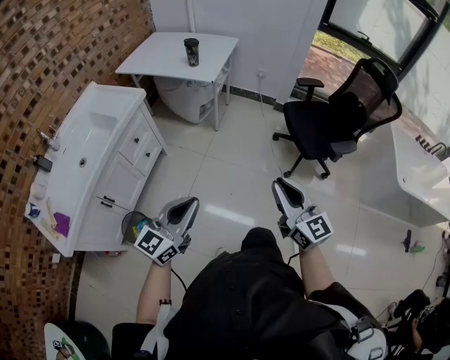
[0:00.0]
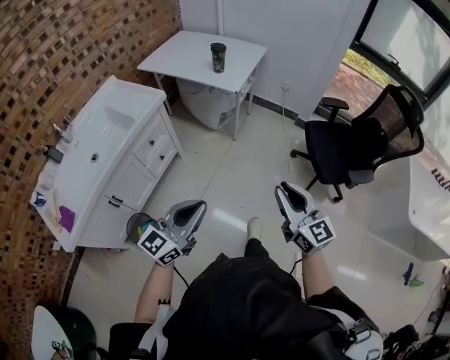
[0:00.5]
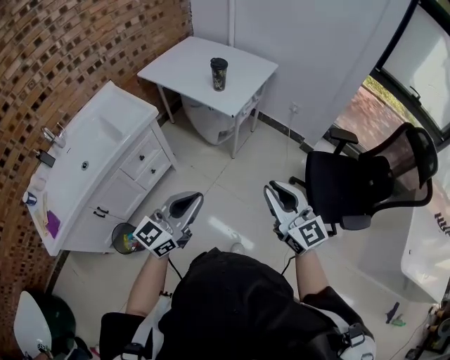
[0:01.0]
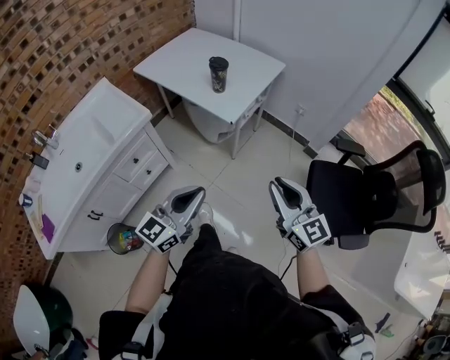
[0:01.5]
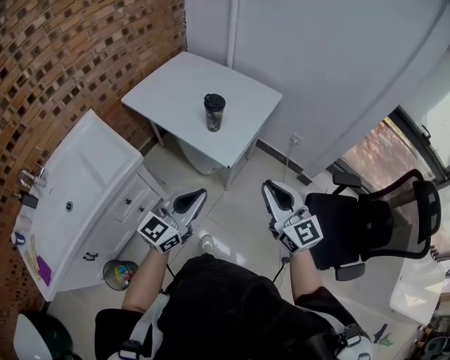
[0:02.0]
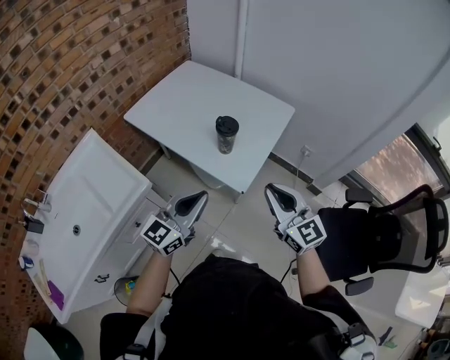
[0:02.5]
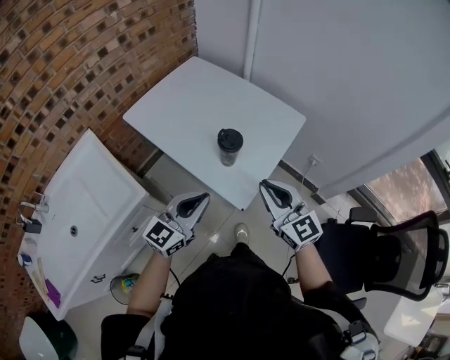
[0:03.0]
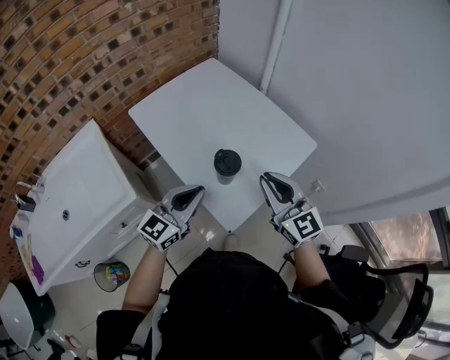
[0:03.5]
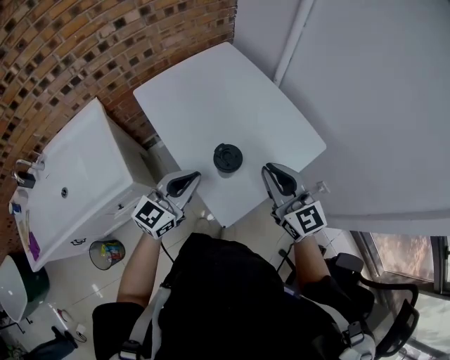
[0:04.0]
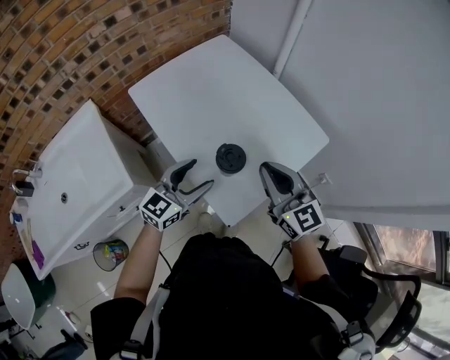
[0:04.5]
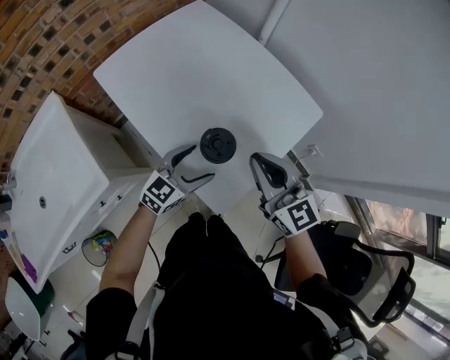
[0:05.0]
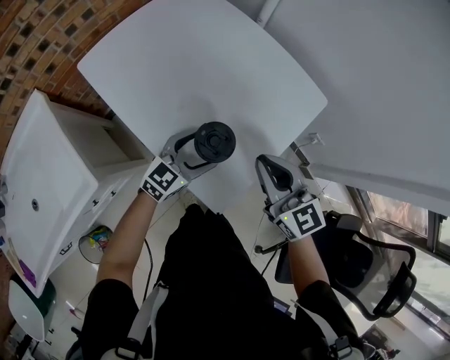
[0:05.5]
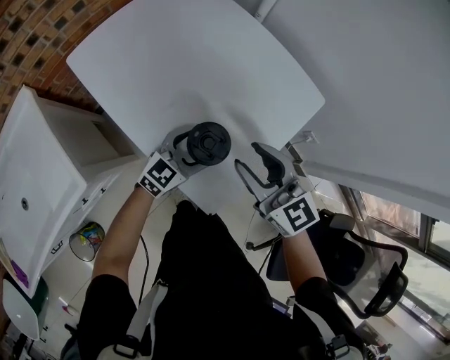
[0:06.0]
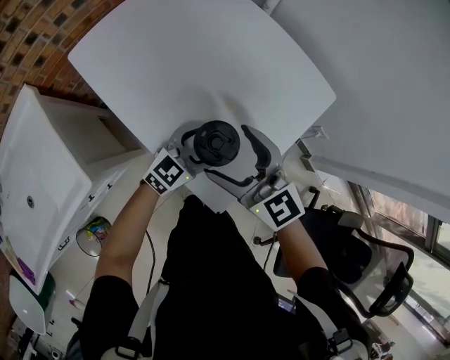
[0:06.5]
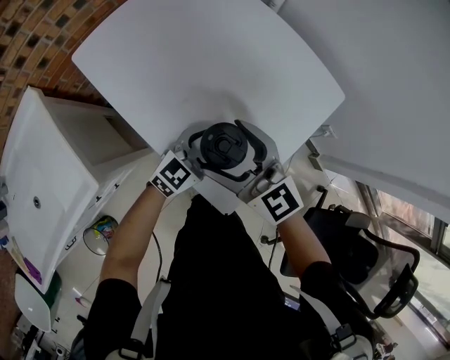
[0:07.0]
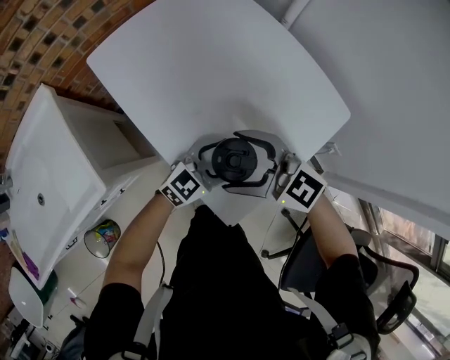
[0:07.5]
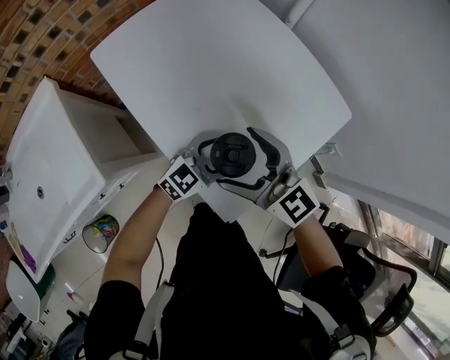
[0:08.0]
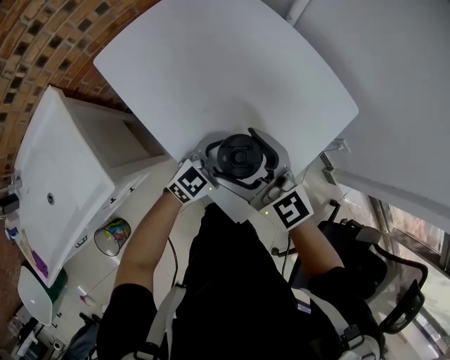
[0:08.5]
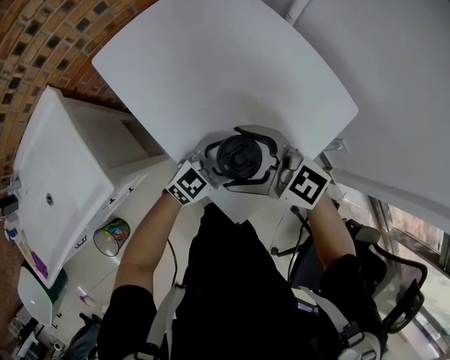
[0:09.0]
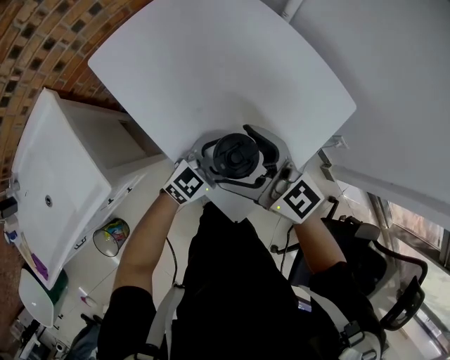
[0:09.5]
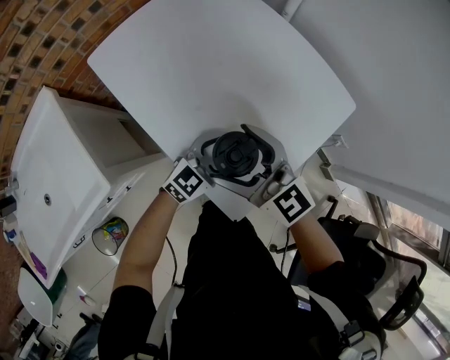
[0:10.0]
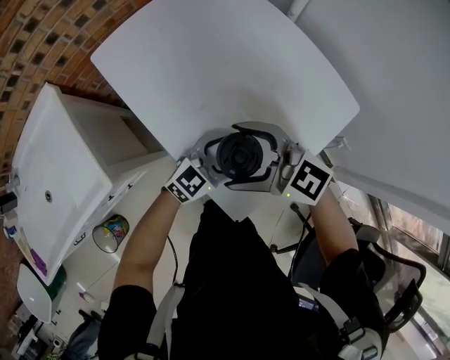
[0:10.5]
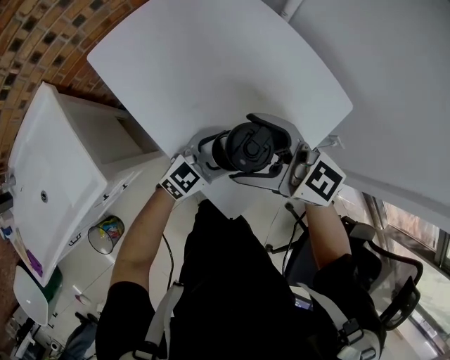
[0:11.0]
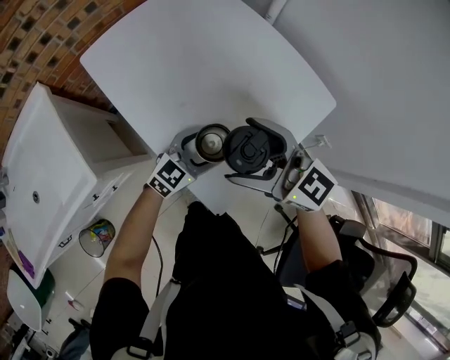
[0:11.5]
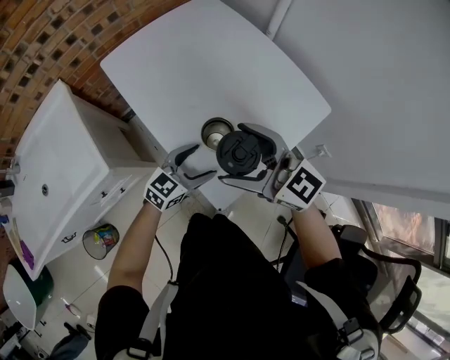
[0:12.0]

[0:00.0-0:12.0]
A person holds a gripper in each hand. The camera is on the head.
0:00.0 to 0:02.0: Both grippers are carried forward, about 50 cm.
0:02.0 to 0:04.0: The two grippers go about 35 cm forward. The left gripper rotates roughly 20 degrees, while the right gripper rotates roughly 20 degrees.
0:04.0 to 0:06.0: The left gripper goes roughly 20 cm downward, swivels some 30 degrees, and opens its fingers; the right gripper shifts approximately 10 cm downward.
0:06.0 to 0:08.0: The right gripper ends up approximately 10 cm from where it was, changes its angle by approximately 20 degrees, and opens its fingers.
0:10.0 to 0:12.0: The right gripper travels upward by approximately 5 cm. The left gripper ends up approximately 5 cm from where it was.

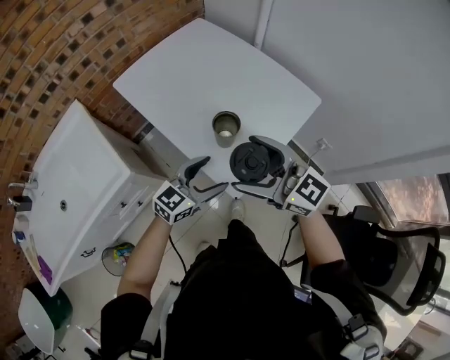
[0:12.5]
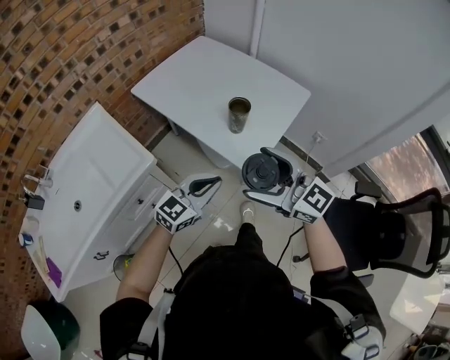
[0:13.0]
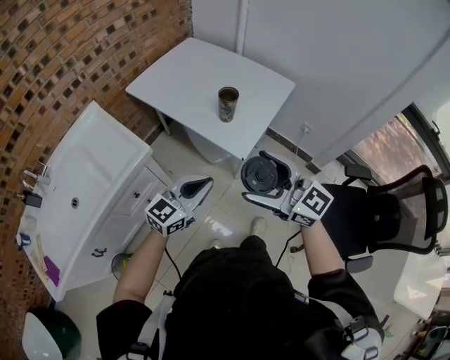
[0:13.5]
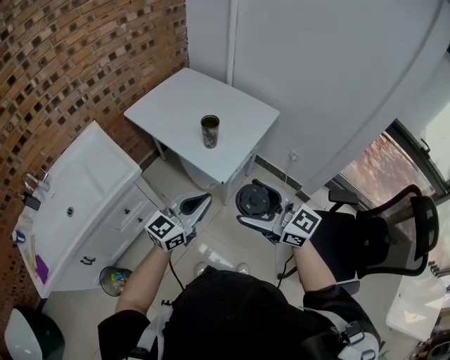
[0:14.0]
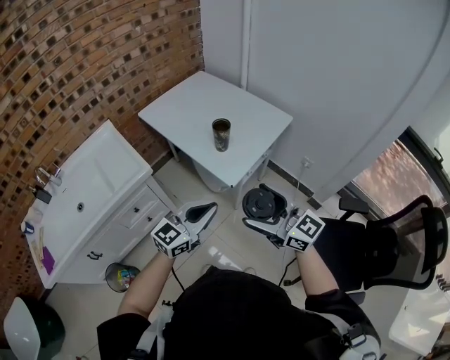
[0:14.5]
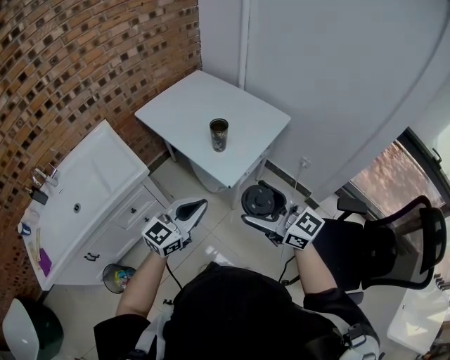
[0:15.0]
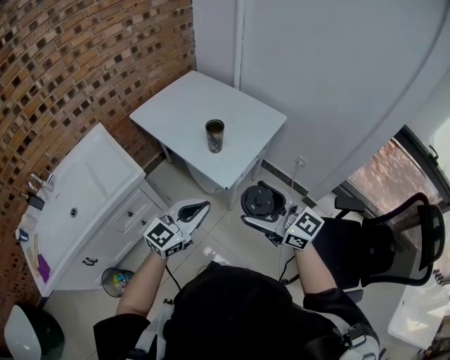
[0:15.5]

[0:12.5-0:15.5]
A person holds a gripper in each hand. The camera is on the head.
0:12.5 to 0:14.0: The left gripper is displaced backward and upward by roughly 30 cm, and closes up, while the right gripper goes roughly 30 cm backward.
0:14.0 to 0:15.5: The grippers make only small movements.

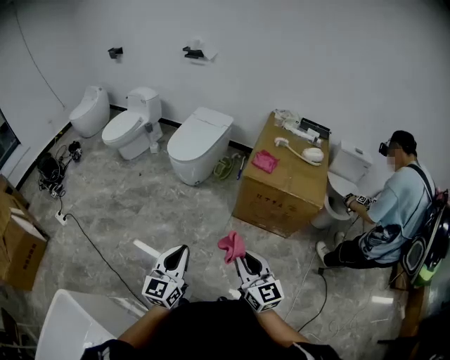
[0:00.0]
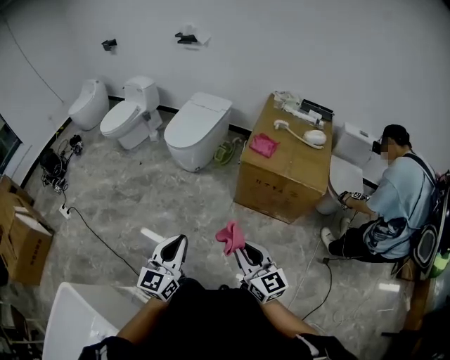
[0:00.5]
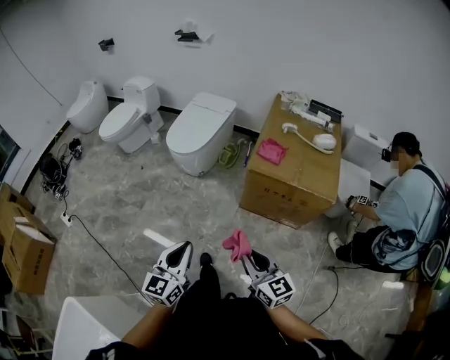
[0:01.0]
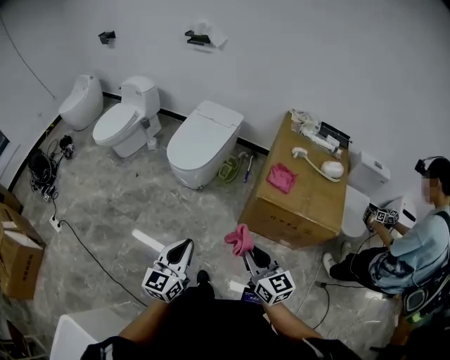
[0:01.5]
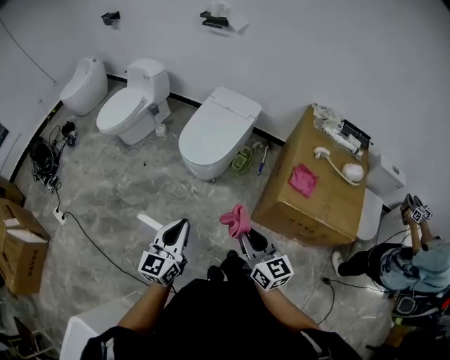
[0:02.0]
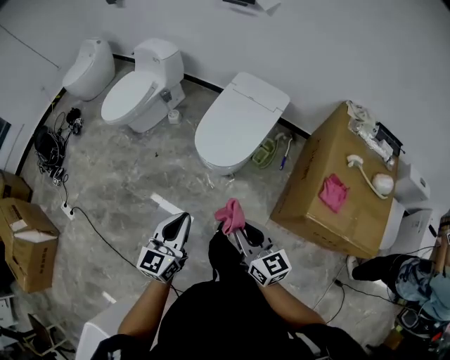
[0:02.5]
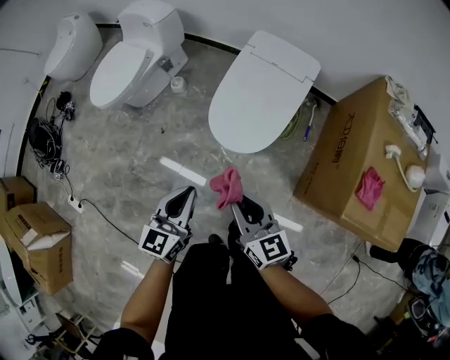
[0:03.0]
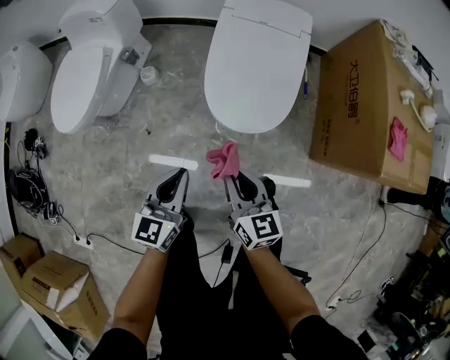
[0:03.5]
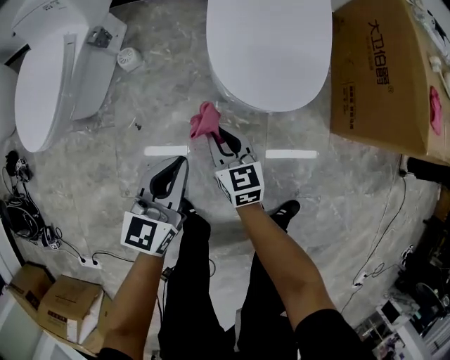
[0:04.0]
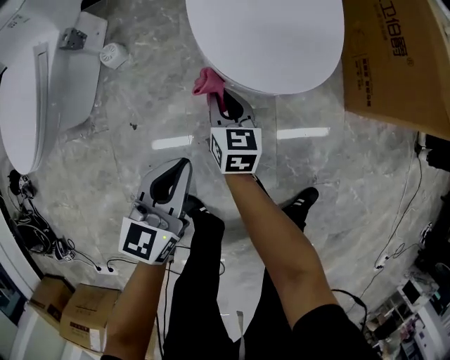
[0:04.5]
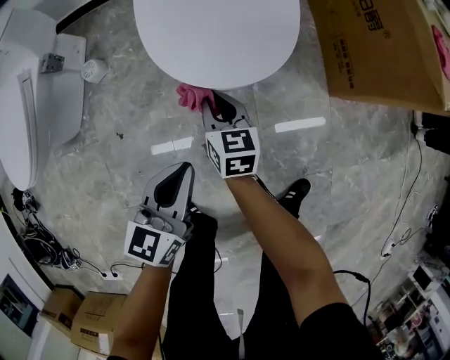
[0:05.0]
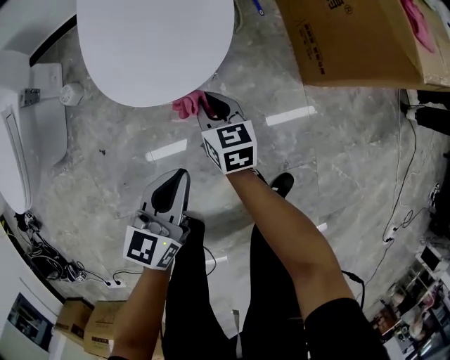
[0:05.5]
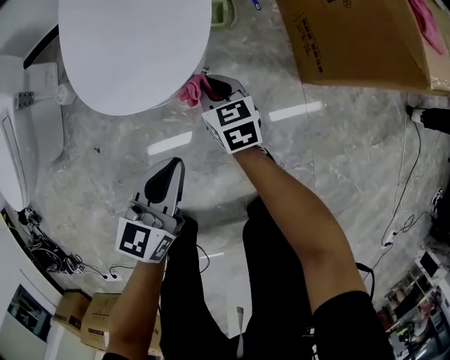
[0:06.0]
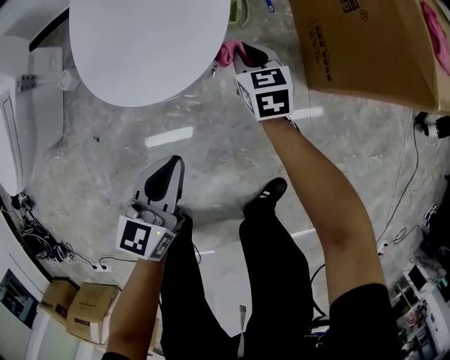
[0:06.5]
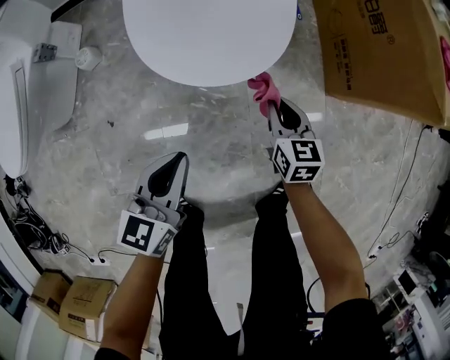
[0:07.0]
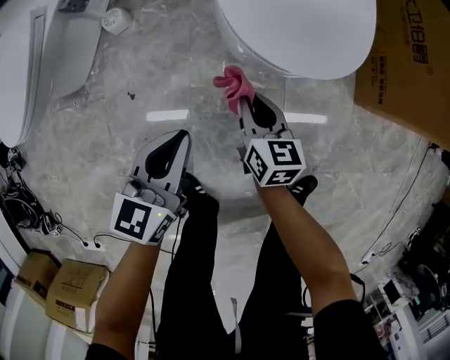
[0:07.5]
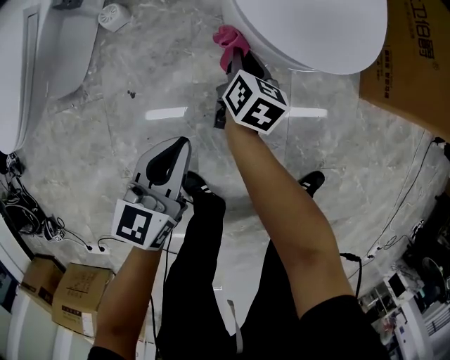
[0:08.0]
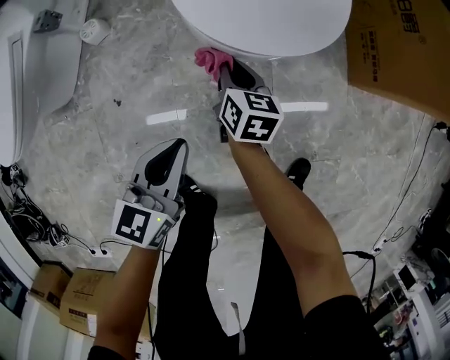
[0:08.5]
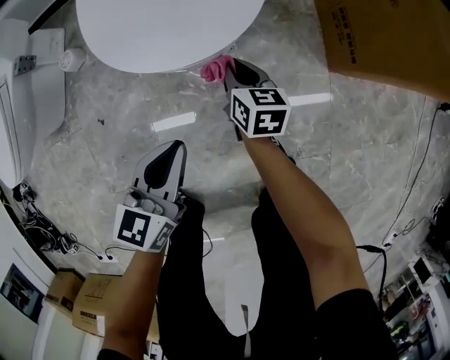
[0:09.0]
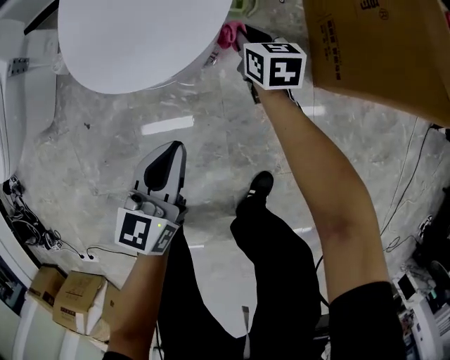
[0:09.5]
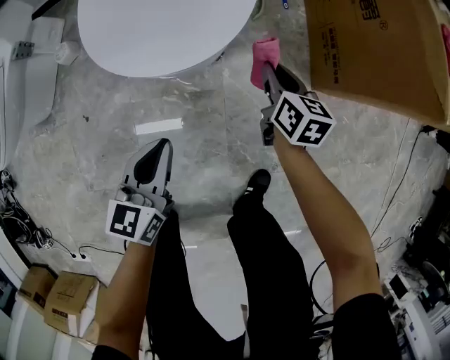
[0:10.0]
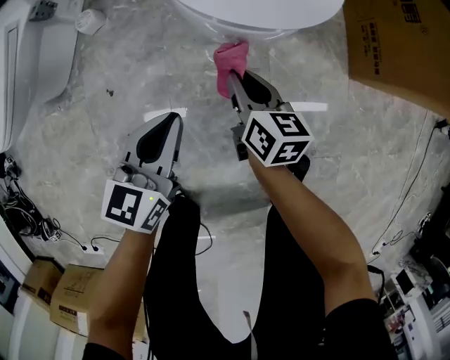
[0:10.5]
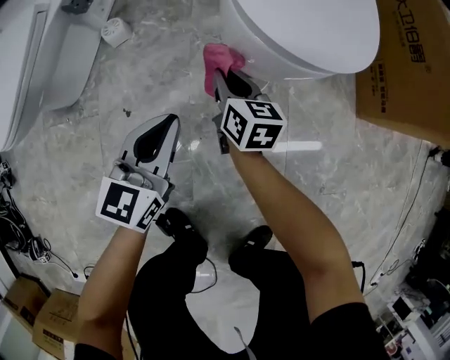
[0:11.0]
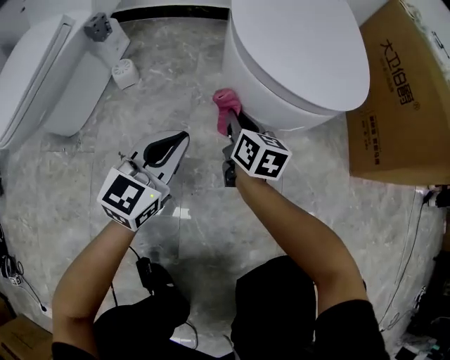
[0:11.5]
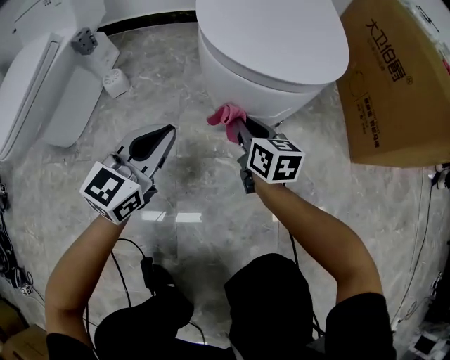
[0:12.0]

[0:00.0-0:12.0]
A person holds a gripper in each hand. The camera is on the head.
0:00.0 to 0:02.0: The two grippers go some 35 cm forward.
0:02.0 to 0:04.0: The two grippers travel together, about 50 cm. The right gripper swivels roughly 30 degrees; the left gripper changes its angle by about 30 degrees.
0:04.0 to 0:06.0: The left gripper heads to the right, covering roughly 25 cm; the right gripper travels to the right and forward by about 25 cm.
0:06.0 to 0:08.0: Both grippers travel together to the left, about 25 cm. The right gripper changes its angle by some 30 degrees.
0:08.0 to 0:10.0: The right gripper travels to the right by about 30 cm. The left gripper shifts some 20 cm to the right.
0:10.0 to 0:12.0: Both grippers move to the left, some 20 cm. The left gripper changes its angle by roughly 30 degrees.
